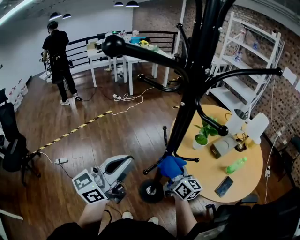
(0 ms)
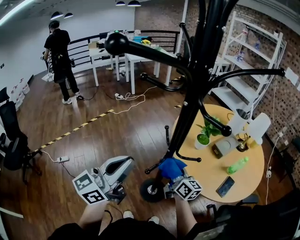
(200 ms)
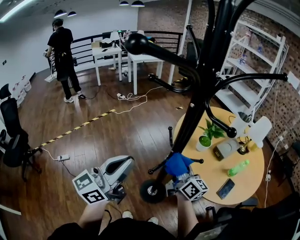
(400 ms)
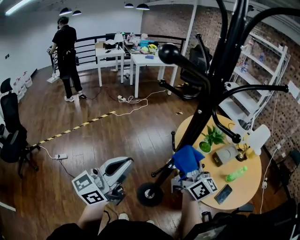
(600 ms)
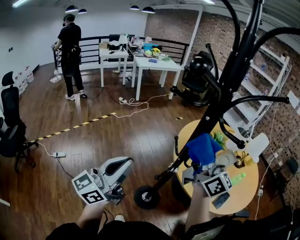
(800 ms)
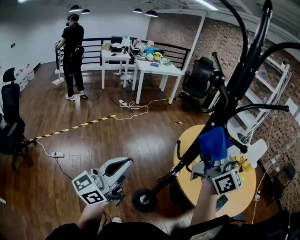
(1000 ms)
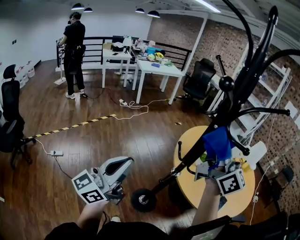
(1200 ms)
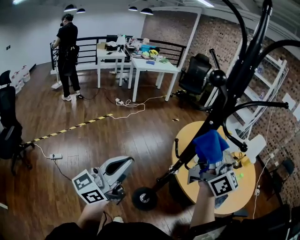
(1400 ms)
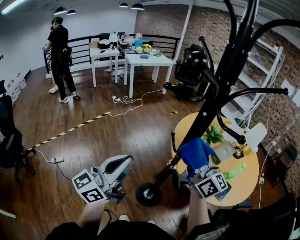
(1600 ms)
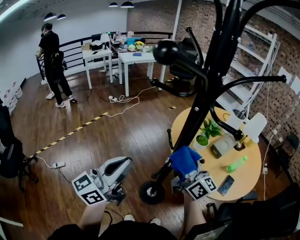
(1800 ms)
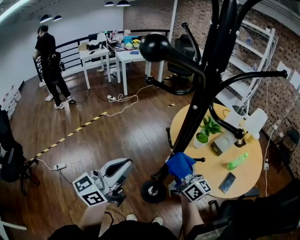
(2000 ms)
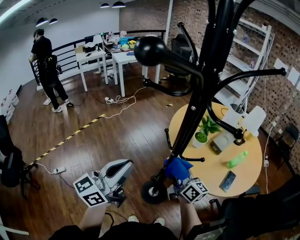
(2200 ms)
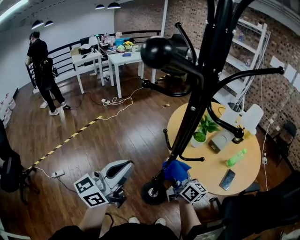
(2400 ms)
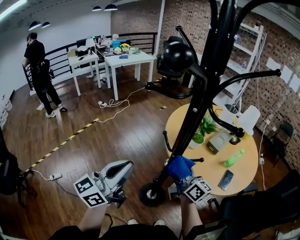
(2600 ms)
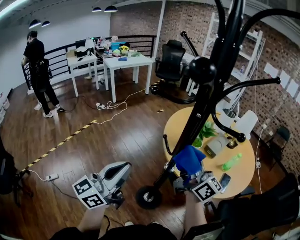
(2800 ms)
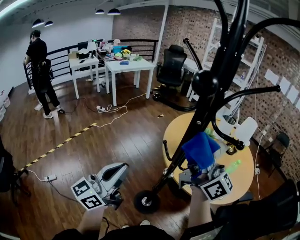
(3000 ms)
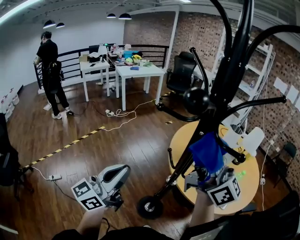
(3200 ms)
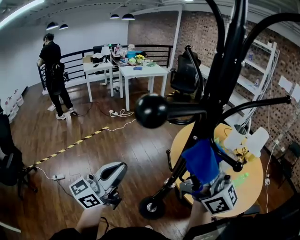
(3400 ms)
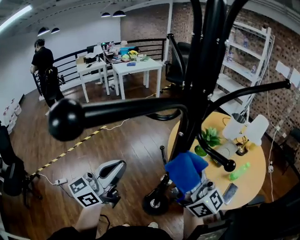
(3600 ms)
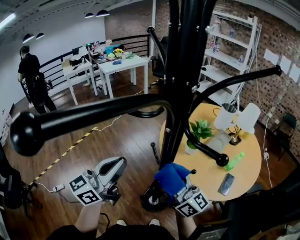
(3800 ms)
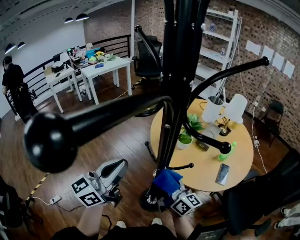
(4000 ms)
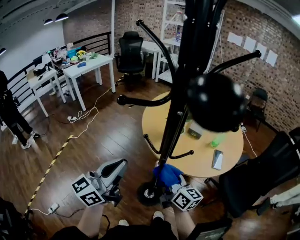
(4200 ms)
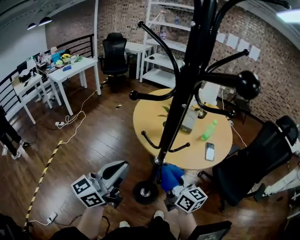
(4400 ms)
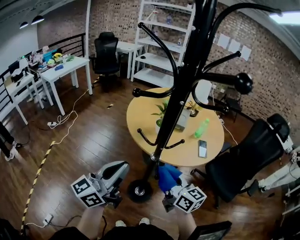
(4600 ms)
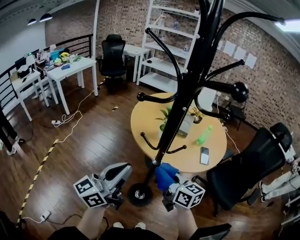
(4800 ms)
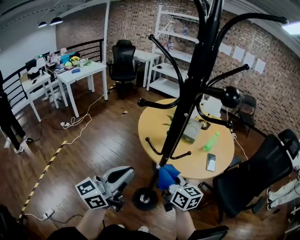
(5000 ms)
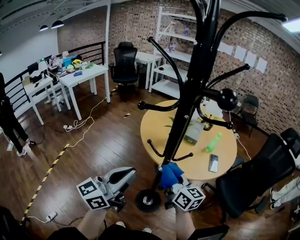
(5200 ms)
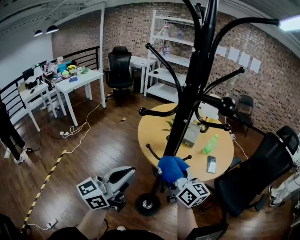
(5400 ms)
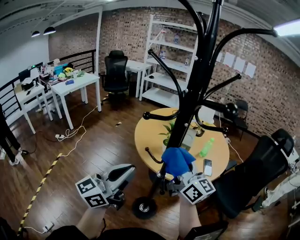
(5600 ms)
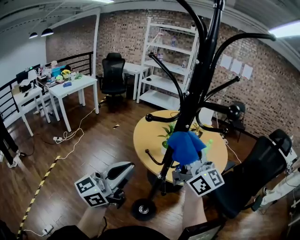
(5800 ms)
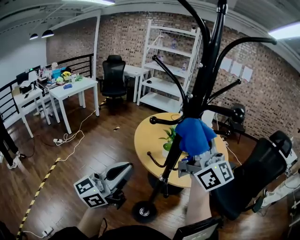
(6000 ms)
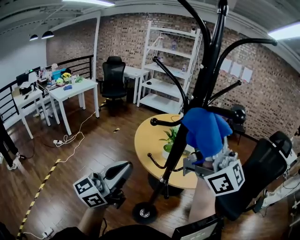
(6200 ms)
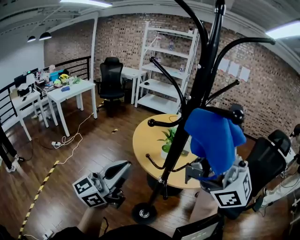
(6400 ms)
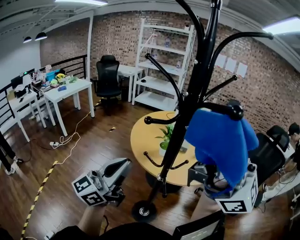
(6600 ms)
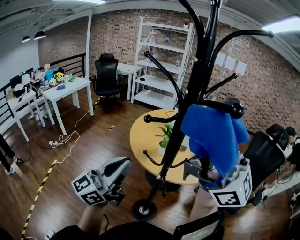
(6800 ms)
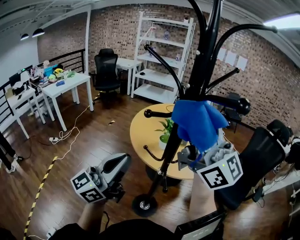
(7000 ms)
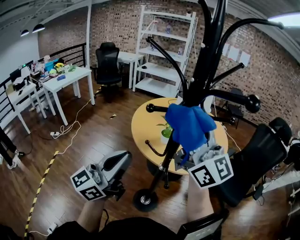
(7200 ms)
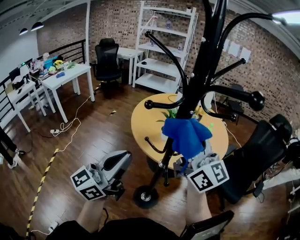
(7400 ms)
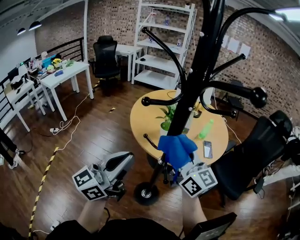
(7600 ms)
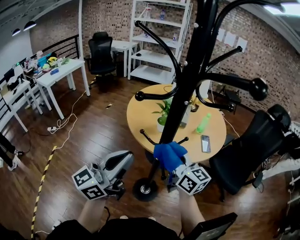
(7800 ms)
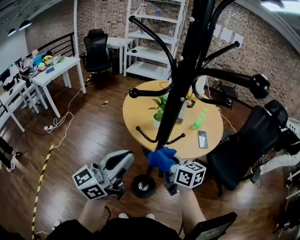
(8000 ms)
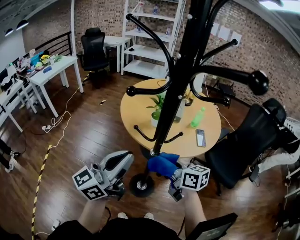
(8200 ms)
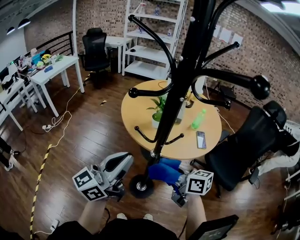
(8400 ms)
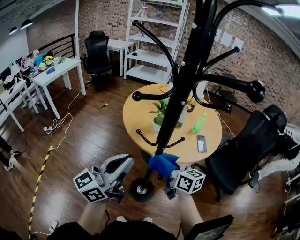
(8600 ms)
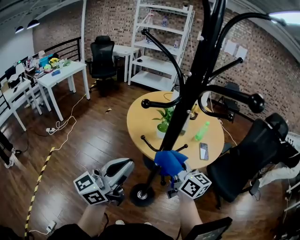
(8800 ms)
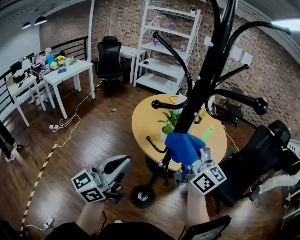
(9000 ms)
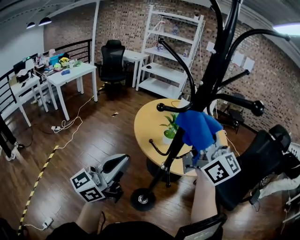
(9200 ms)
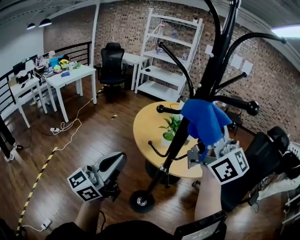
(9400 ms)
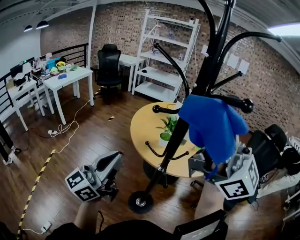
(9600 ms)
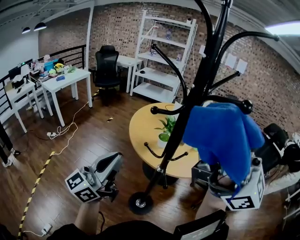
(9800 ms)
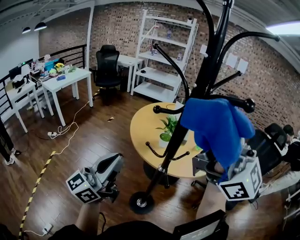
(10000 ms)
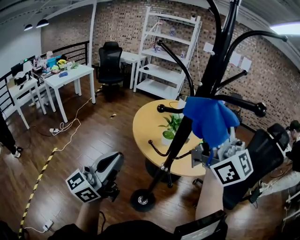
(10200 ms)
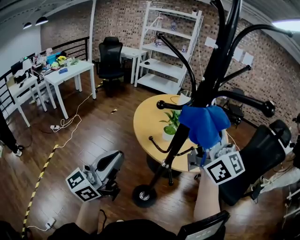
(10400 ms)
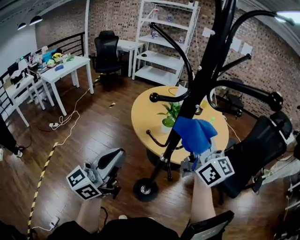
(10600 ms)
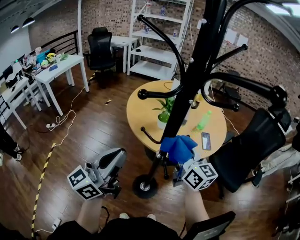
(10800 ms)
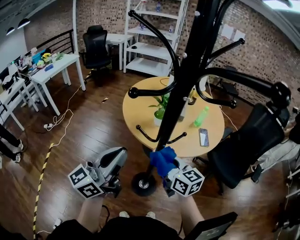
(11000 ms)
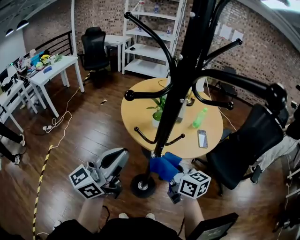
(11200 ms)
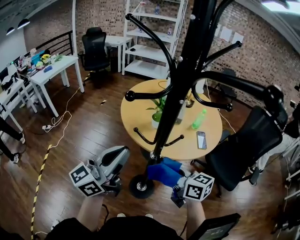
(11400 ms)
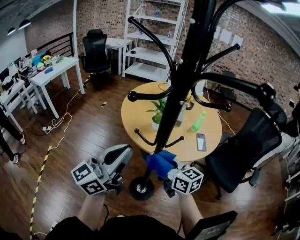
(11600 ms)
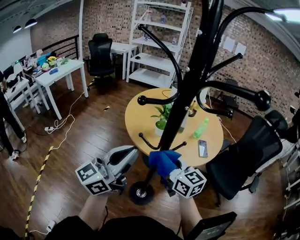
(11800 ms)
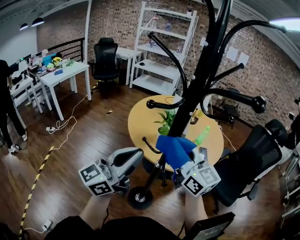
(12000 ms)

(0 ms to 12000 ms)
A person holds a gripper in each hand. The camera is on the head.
0 ms - 1600 ms: The left gripper travels to the left by roughly 5 cm; the right gripper travels upward by roughly 20 cm.
1600 ms - 3000 ms: The left gripper ends up some 5 cm from where it was. Meanwhile the right gripper moves roughly 20 cm downward and comes back.
3000 ms - 4400 ms: The right gripper shifts roughly 25 cm downward, and angles its fingers downward, by some 30 degrees; the left gripper turns by roughly 30 degrees.
4400 ms - 6000 ms: The left gripper goes roughly 10 cm upward. Meanwhile the right gripper heads upward, covering roughly 35 cm, and tips its fingers upward by roughly 40 degrees.
6000 ms - 7600 ms: The right gripper is displaced downward by approximately 15 cm.
7600 ms - 9000 ms: The right gripper goes downward and returns, some 15 cm each way.
9000 ms - 10400 ms: The right gripper shifts some 10 cm upward.
10400 ms - 12000 ms: The left gripper heads to the right, covering some 10 cm. The right gripper is displaced downward by roughly 15 cm.

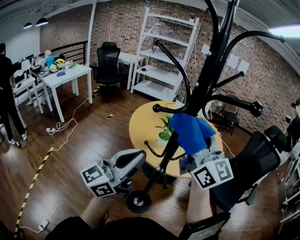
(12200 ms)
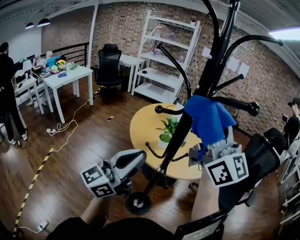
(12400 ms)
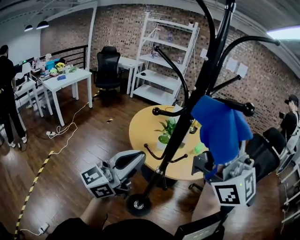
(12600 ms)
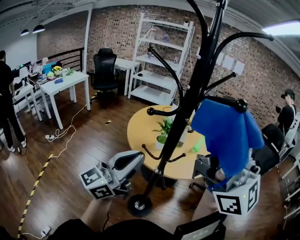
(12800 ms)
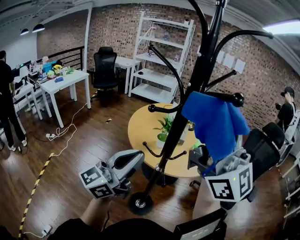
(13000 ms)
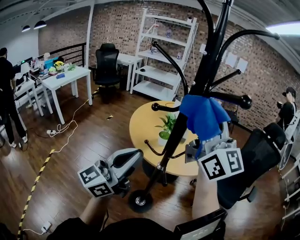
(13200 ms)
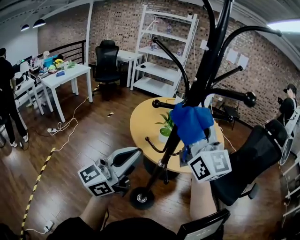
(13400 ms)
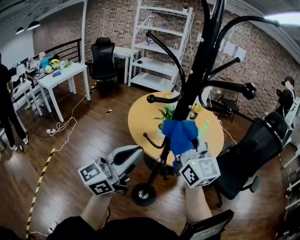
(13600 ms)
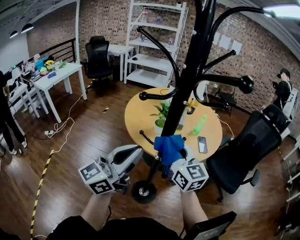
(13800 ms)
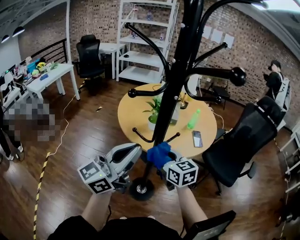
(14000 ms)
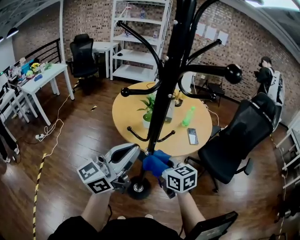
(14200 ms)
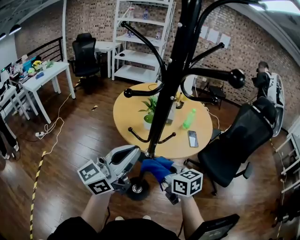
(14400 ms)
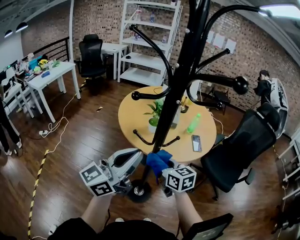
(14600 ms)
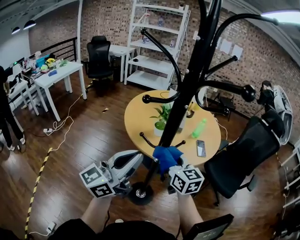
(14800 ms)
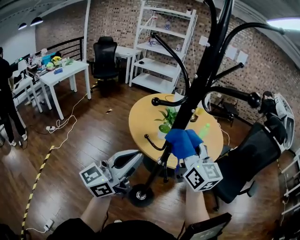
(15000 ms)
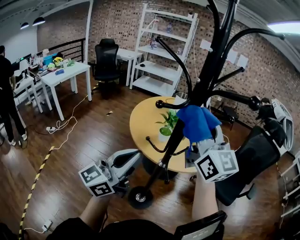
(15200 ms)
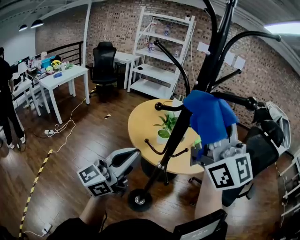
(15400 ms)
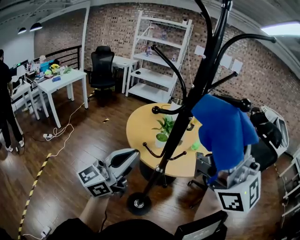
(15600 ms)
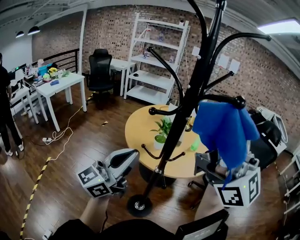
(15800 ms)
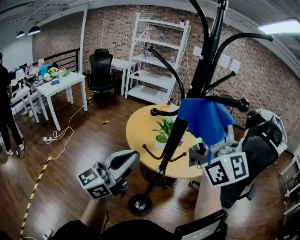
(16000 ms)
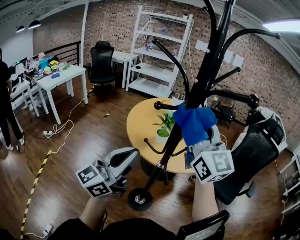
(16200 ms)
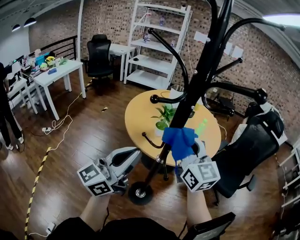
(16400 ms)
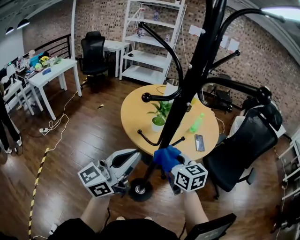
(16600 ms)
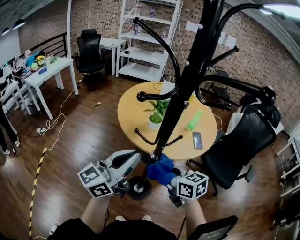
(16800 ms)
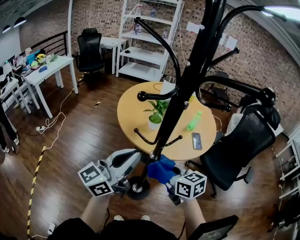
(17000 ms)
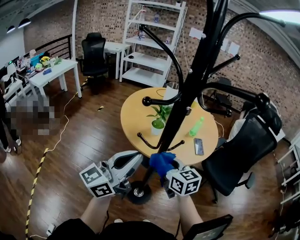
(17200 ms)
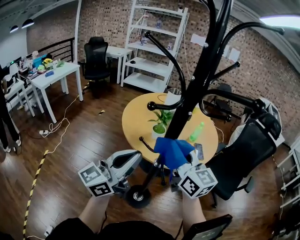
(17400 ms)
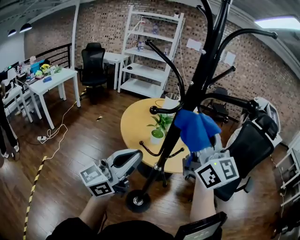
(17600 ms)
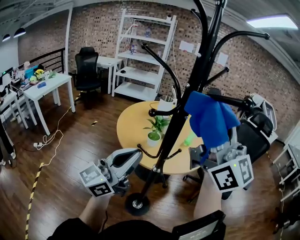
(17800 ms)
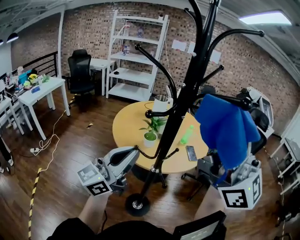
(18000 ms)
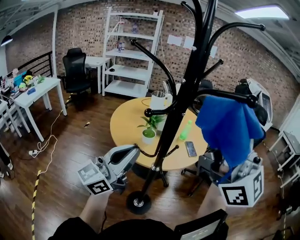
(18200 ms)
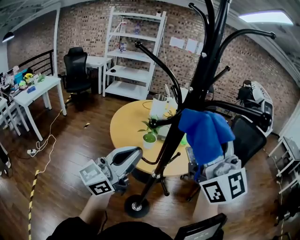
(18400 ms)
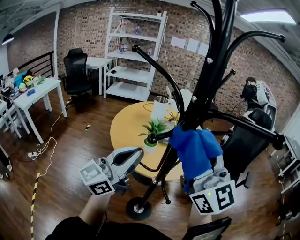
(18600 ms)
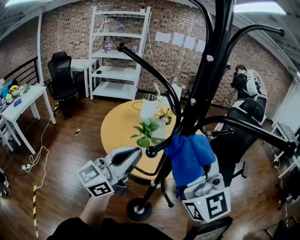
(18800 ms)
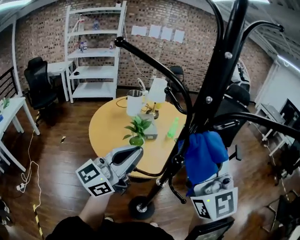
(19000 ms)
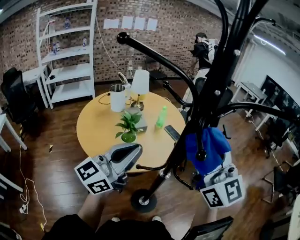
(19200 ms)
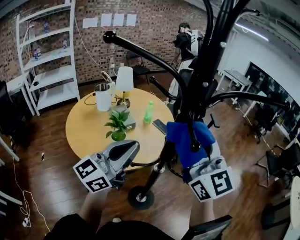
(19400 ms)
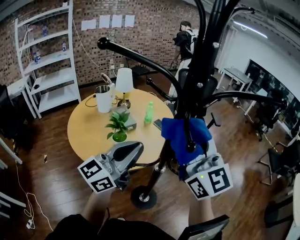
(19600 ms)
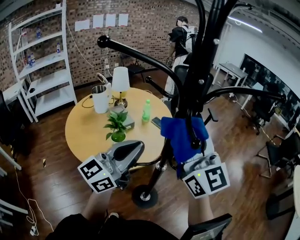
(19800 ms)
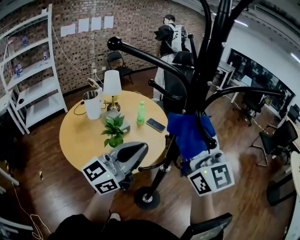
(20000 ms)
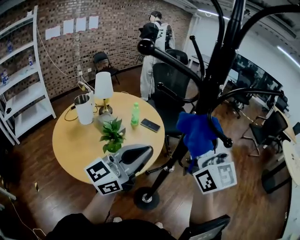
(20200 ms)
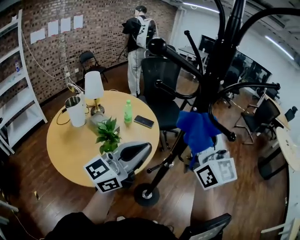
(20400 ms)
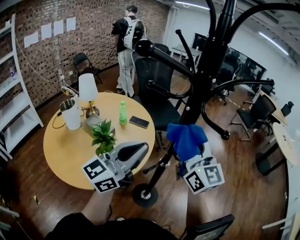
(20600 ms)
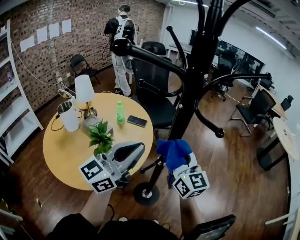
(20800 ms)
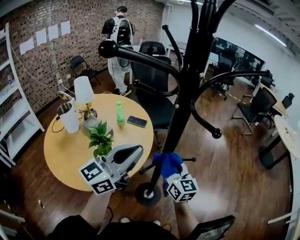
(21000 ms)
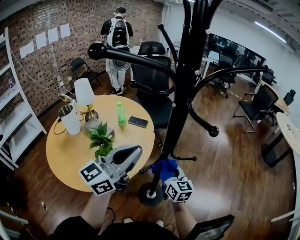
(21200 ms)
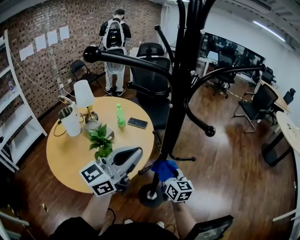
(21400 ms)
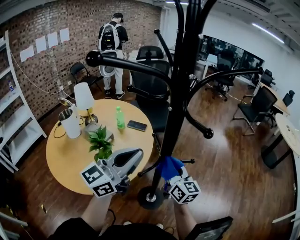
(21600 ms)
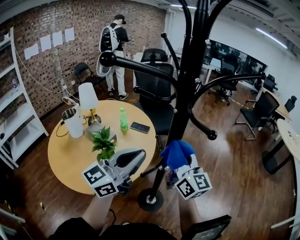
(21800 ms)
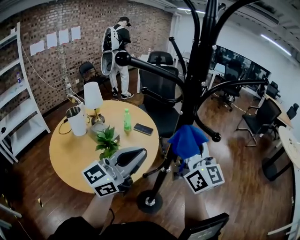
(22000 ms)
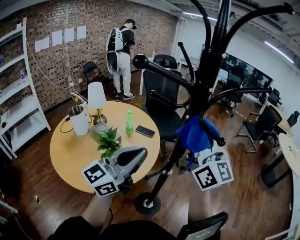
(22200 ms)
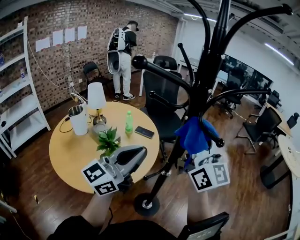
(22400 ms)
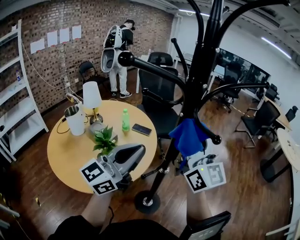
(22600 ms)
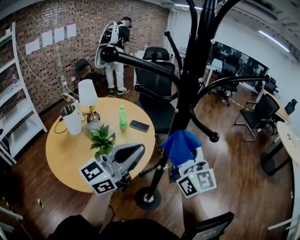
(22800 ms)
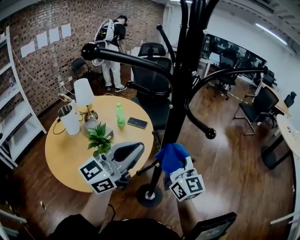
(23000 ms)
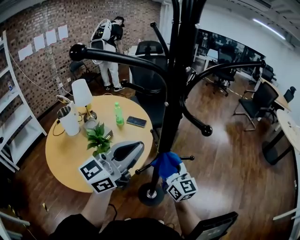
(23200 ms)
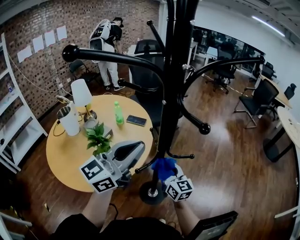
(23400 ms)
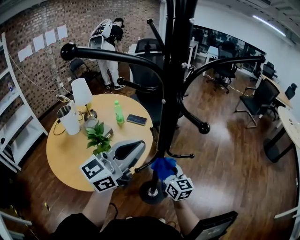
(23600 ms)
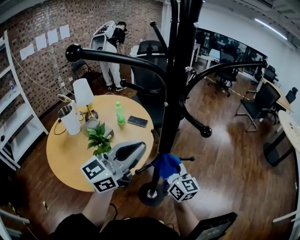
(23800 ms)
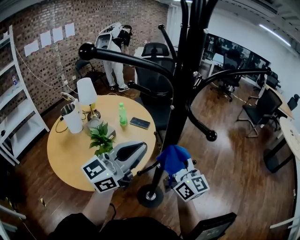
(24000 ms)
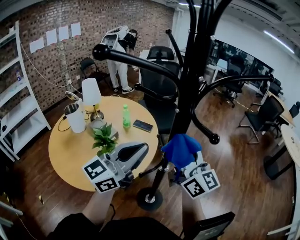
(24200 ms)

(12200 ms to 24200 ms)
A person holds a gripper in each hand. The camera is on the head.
12200 ms - 13800 ms: The right gripper shifts approximately 20 cm downward, and changes its angle by about 20 degrees.
13800 ms - 15200 ms: The right gripper moves upward, some 20 cm, and changes its angle by roughly 20 degrees.
15200 ms - 16600 ms: The right gripper shifts roughly 30 cm downward, and tilts its fingers roughly 40 degrees downward.
16600 ms - 18200 ms: The right gripper travels upward by about 40 cm, and tips its fingers upward by some 60 degrees. The left gripper ends up about 5 cm from where it was.
18200 ms - 19800 ms: The right gripper shifts by approximately 25 cm, and turns by some 50 degrees, while the left gripper changes place by some 15 cm, and turns by roughly 40 degrees.
19800 ms - 21200 ms: The right gripper moves downward, some 35 cm, and rotates roughly 50 degrees. Meanwhile the left gripper changes its angle by approximately 30 degrees.
21200 ms - 22600 ms: The right gripper shifts about 30 cm upward, and tips its fingers upward by roughly 30 degrees.
22600 ms - 24200 ms: The right gripper moves approximately 35 cm downward and comes back.
